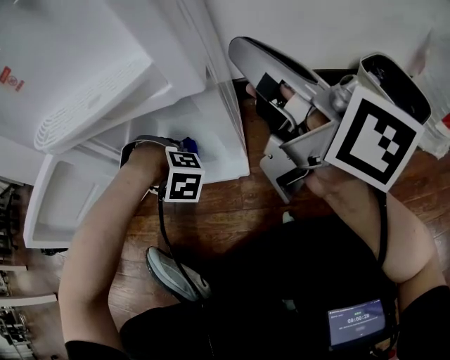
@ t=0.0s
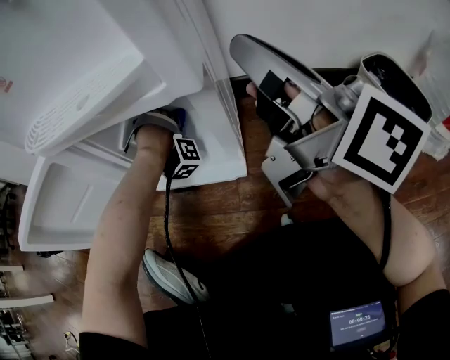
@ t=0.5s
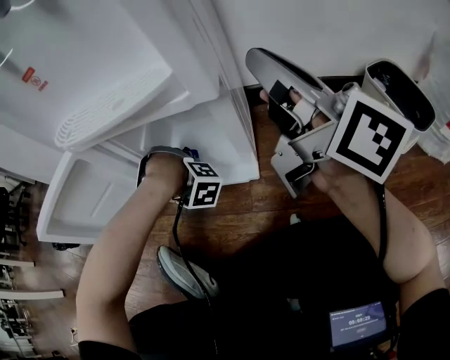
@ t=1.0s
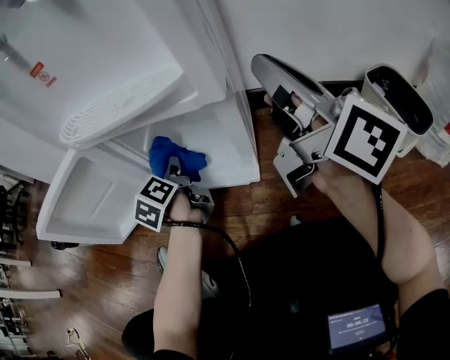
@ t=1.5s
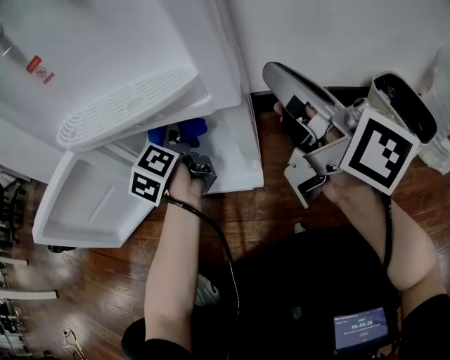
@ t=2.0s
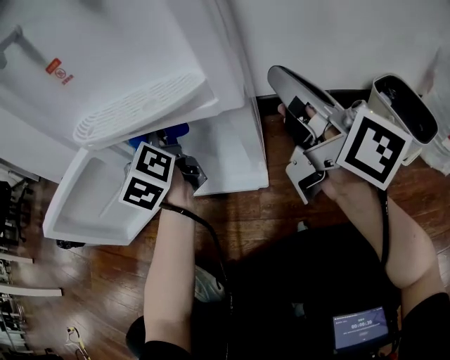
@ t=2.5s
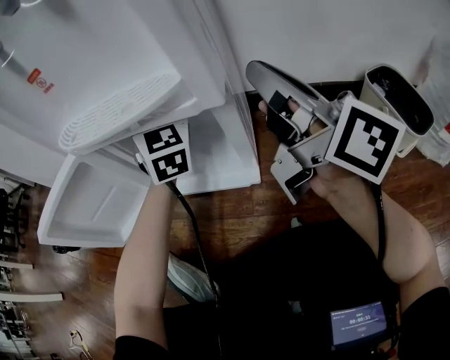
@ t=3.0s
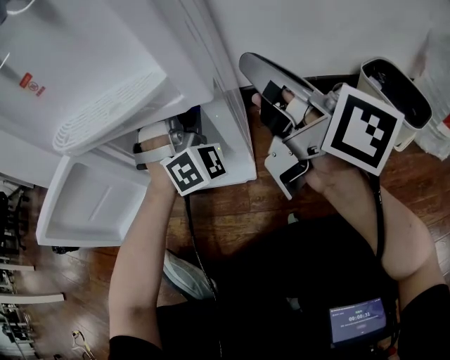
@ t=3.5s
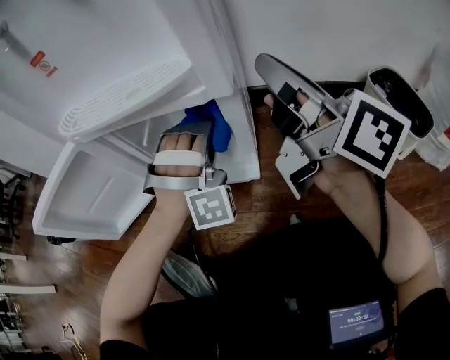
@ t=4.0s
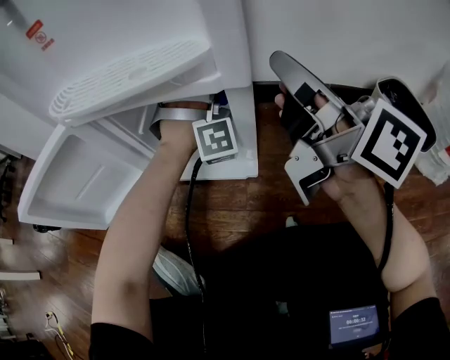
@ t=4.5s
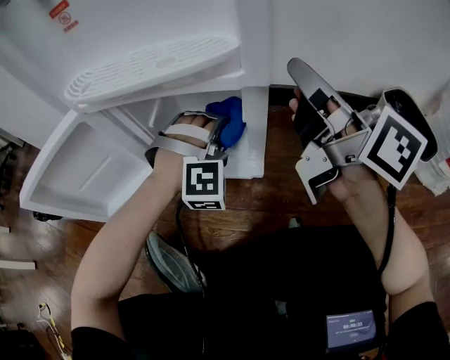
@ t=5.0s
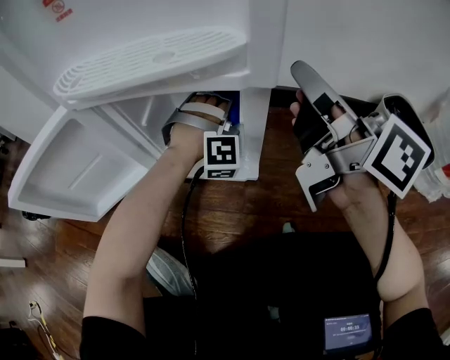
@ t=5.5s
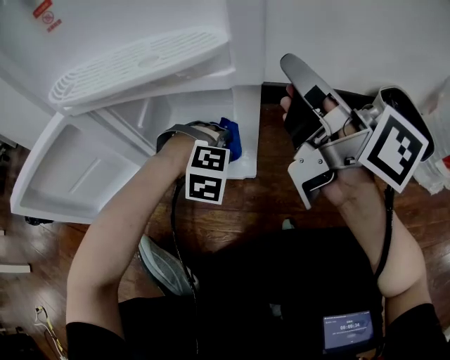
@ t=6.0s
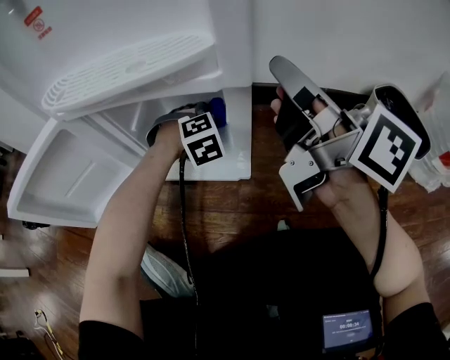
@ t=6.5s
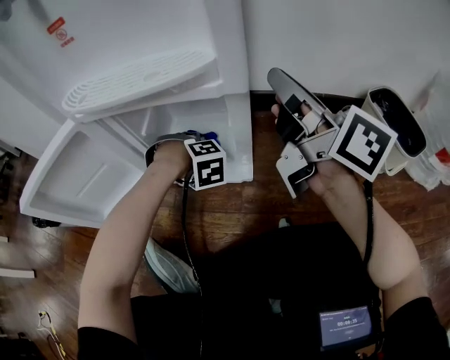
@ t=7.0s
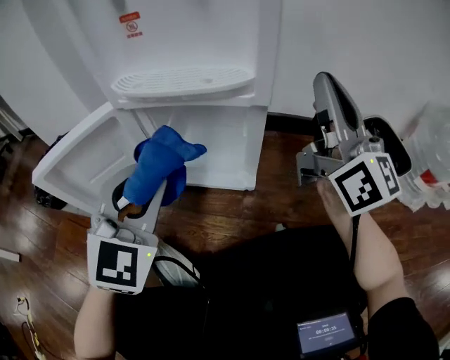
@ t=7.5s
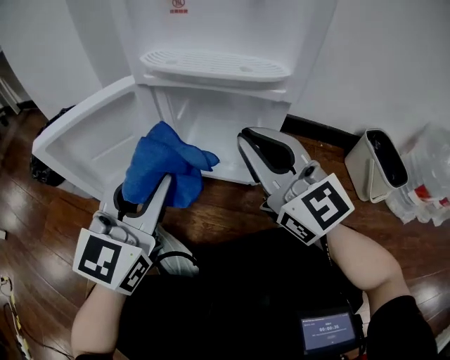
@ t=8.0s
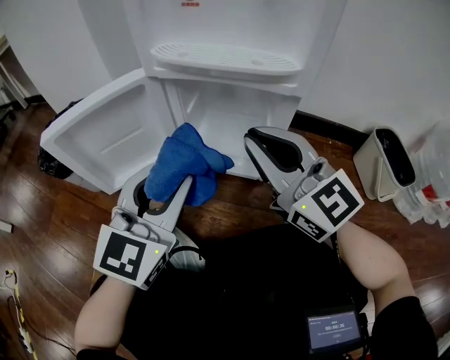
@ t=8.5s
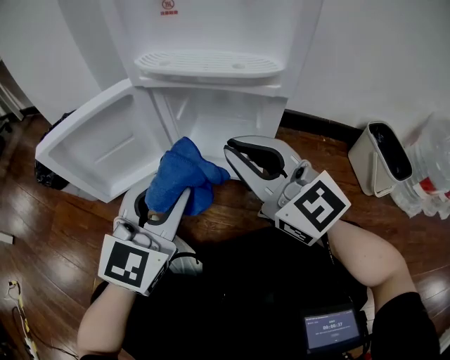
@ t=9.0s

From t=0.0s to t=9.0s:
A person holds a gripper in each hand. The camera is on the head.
From t=0.0s to t=2.0s: The left gripper shifts roughly 15 cm upward, and tips its fingers upward by some 50 degrees.
From t=2.0s to t=4.5s: The left gripper is displaced to the right by some 15 cm, and twists about 150 degrees clockwise, seen from behind.
From t=4.5s to t=7.0s: The left gripper heads downward, covering some 15 cm, and tilts its fingers roughly 50 degrees downward.
From t=7.0s to t=9.0s: The left gripper travels upward by some 25 cm, and tilts its fingers roughly 60 degrees upward; the right gripper reaches some 10 cm upward, then returns, and rolls counterclockwise, seen from behind, by about 50 degrees.

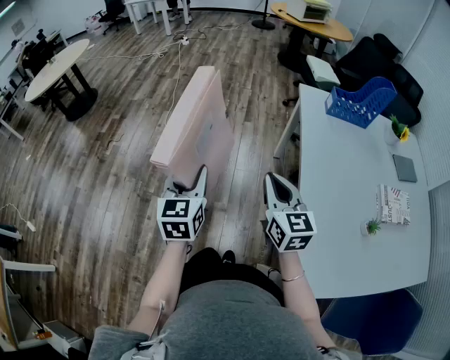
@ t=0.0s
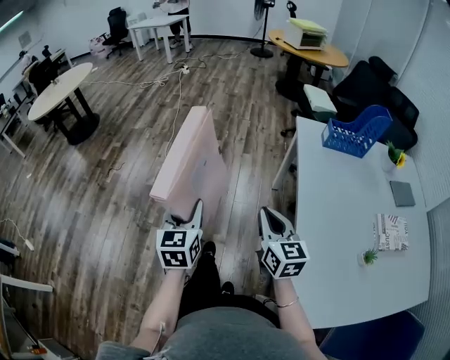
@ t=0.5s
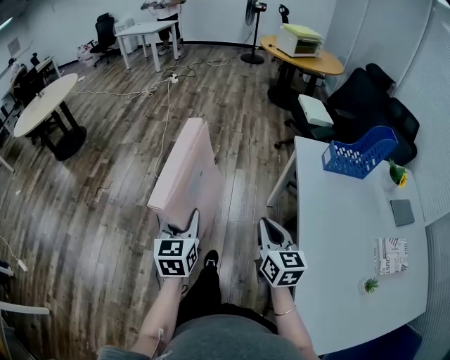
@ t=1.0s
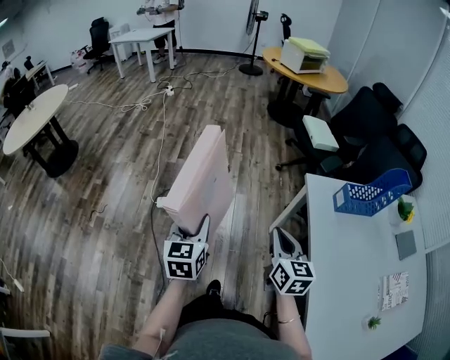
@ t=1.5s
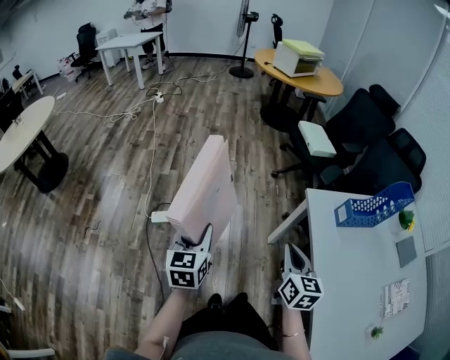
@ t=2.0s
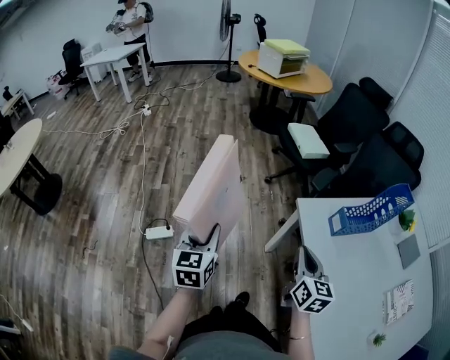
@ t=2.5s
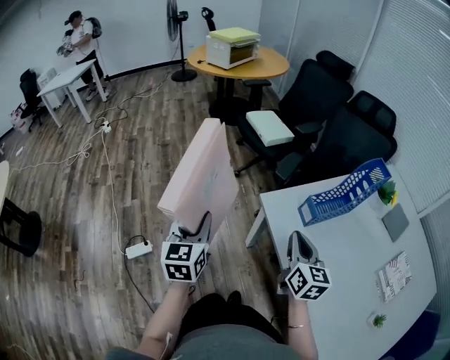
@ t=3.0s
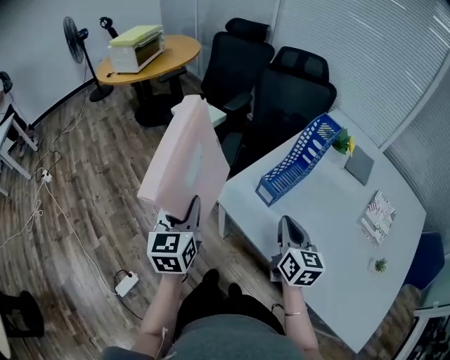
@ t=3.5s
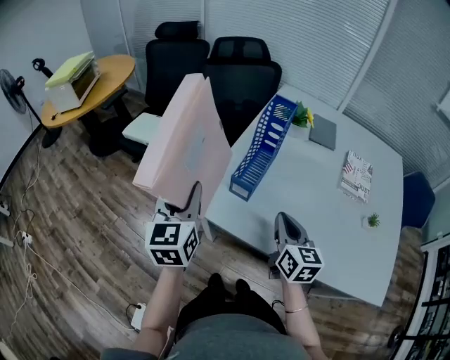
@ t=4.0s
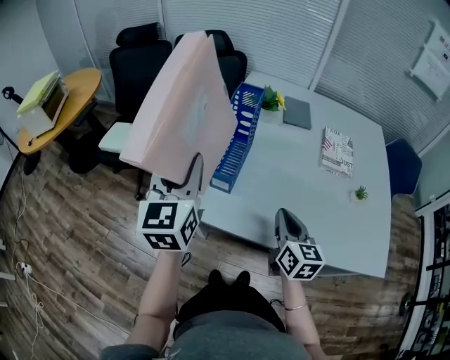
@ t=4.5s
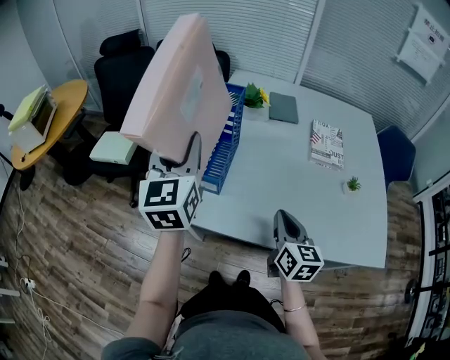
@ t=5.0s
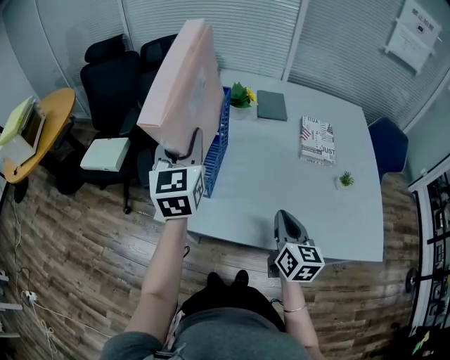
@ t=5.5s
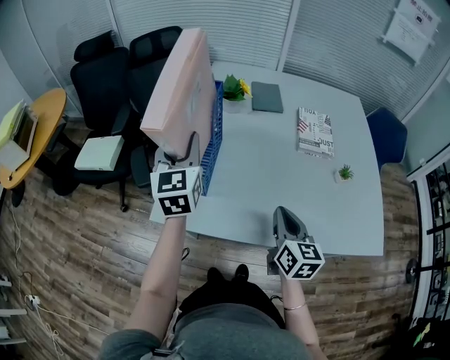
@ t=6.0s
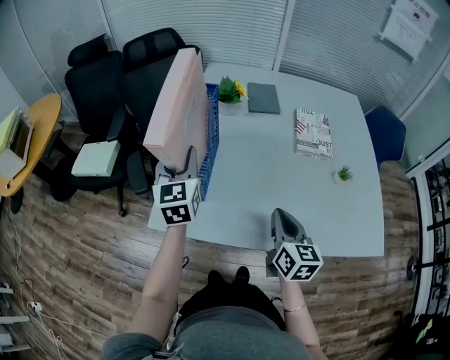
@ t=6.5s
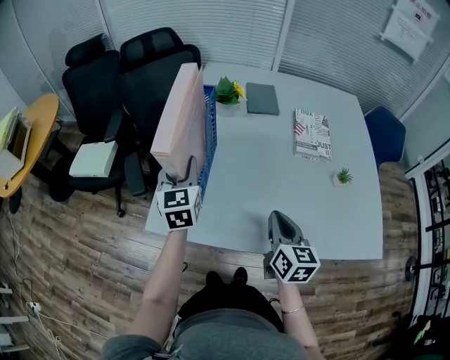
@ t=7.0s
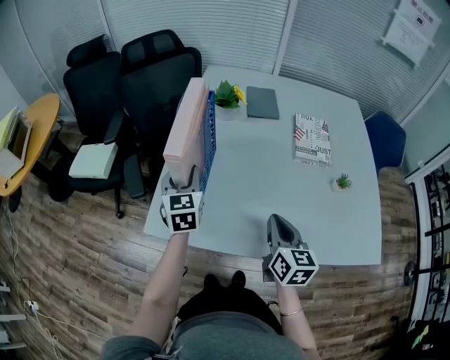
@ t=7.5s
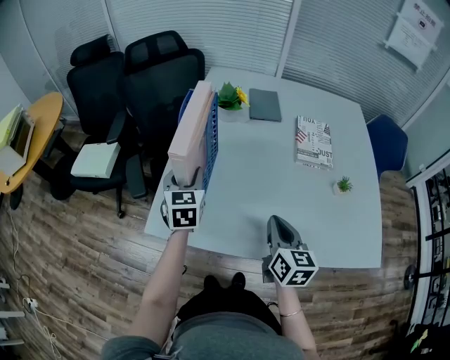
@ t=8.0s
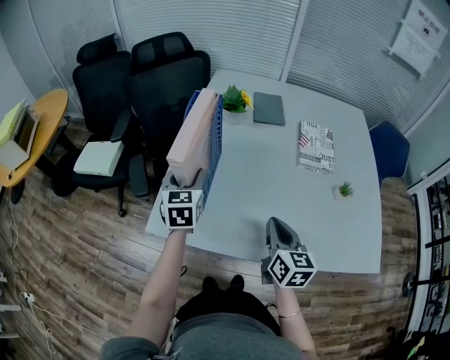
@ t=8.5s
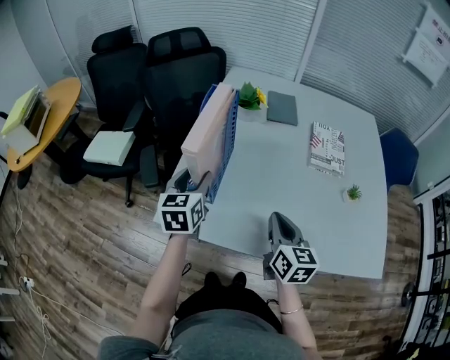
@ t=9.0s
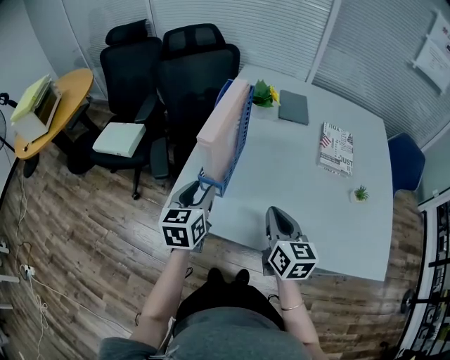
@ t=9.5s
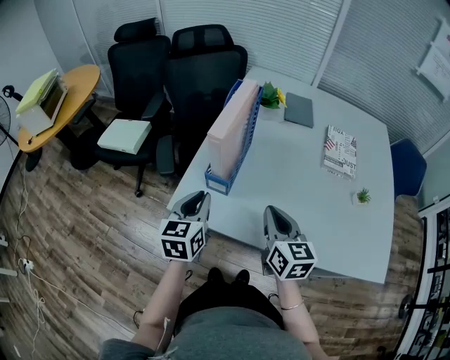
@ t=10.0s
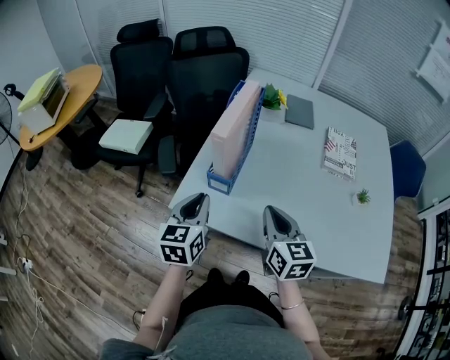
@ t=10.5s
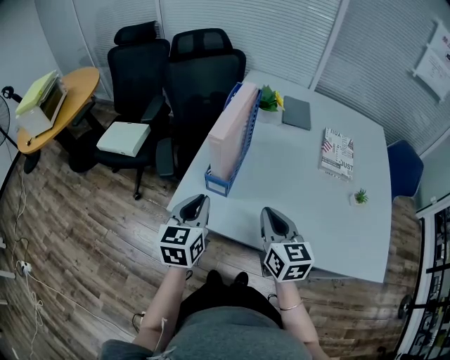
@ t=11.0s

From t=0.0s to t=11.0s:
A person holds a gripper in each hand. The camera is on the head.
From t=0.0s to t=2.0s: The two grippers go some 35 cm forward. The right gripper changes its angle by about 20 degrees.
From t=2.0s to t=3.5s: The right gripper shifts by some 25 cm, and swivels approximately 40 degrees. Meanwhile the left gripper shifts by about 40 cm, and swivels some 40 degrees.
From t=3.5s to t=5.5s: The left gripper moves about 30 cm, and turns by roughly 40 degrees. Meanwhile the right gripper changes place by roughly 15 cm, and swivels about 40 degrees.
From t=5.5s to t=7.5s: The left gripper shifts approximately 15 cm downward.
From t=7.5s to t=9.0s: There are only small adjustments of the grippers.
From t=9.0s to t=11.0s: The right gripper travels to the left by roughly 10 cm. Meanwhile the left gripper is displaced backward by approximately 10 cm, and closes its fingers.

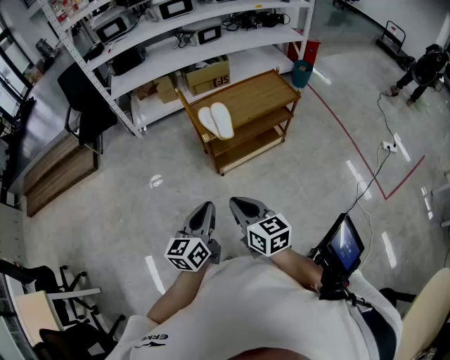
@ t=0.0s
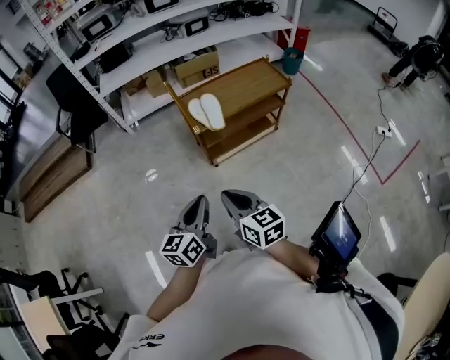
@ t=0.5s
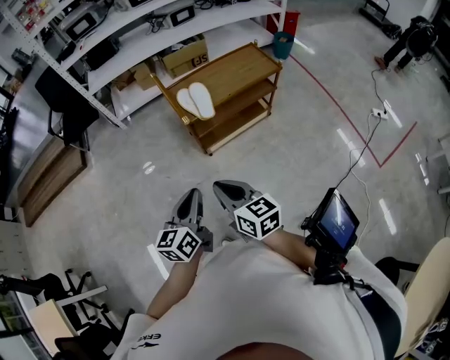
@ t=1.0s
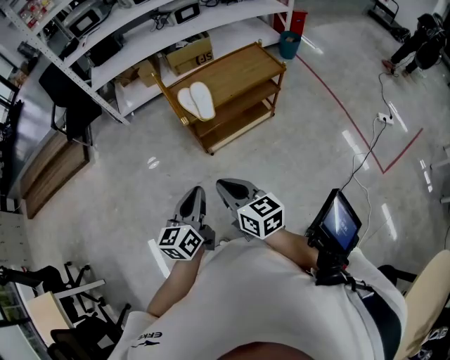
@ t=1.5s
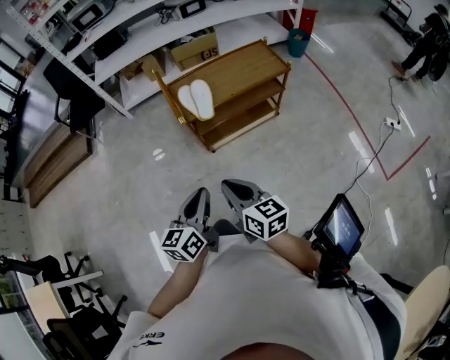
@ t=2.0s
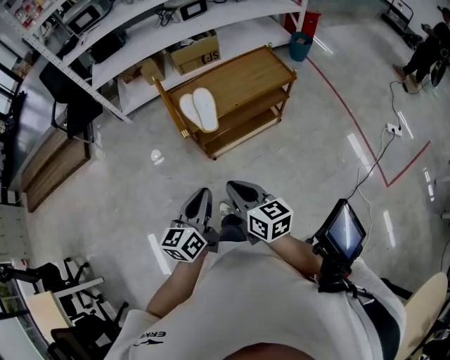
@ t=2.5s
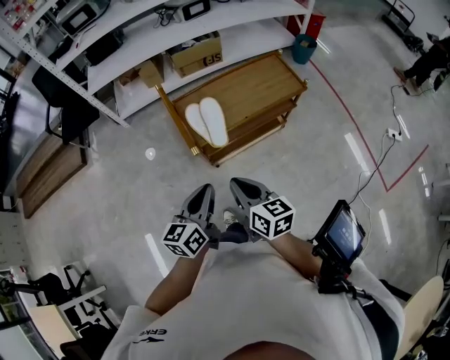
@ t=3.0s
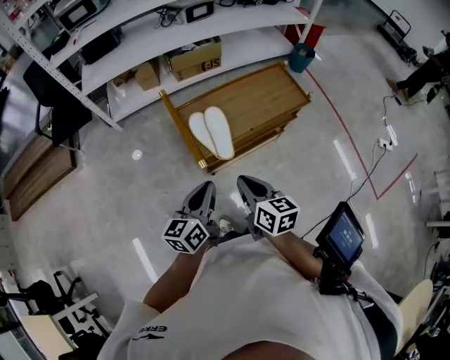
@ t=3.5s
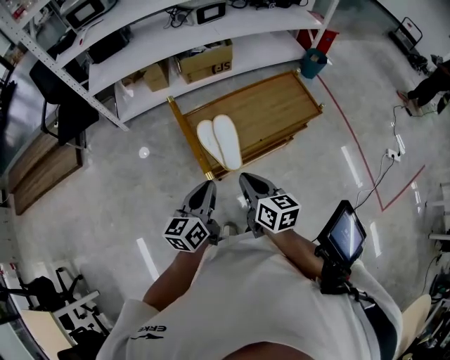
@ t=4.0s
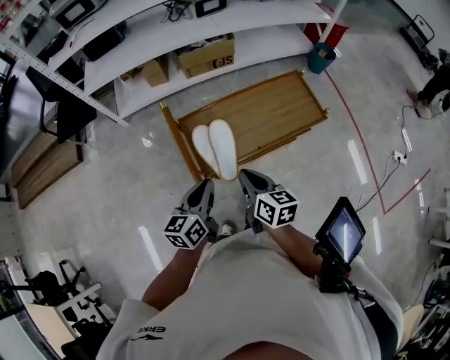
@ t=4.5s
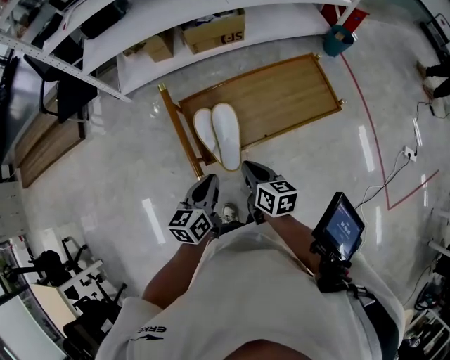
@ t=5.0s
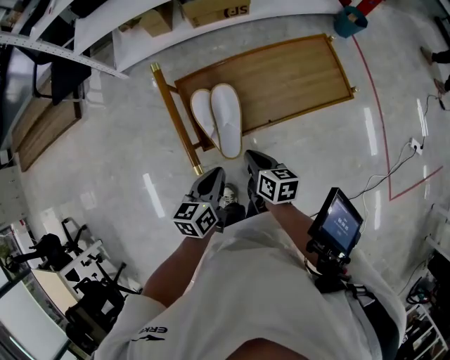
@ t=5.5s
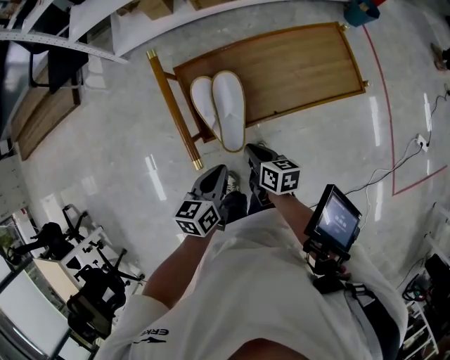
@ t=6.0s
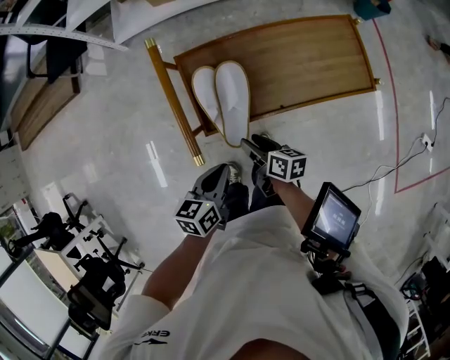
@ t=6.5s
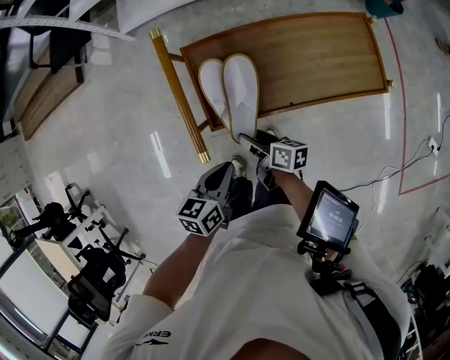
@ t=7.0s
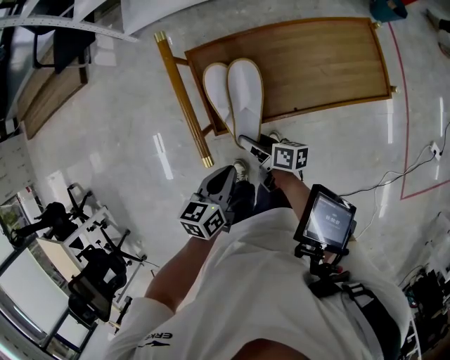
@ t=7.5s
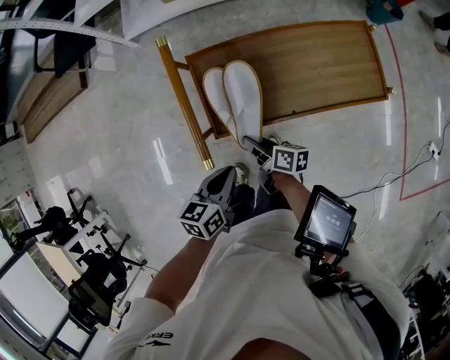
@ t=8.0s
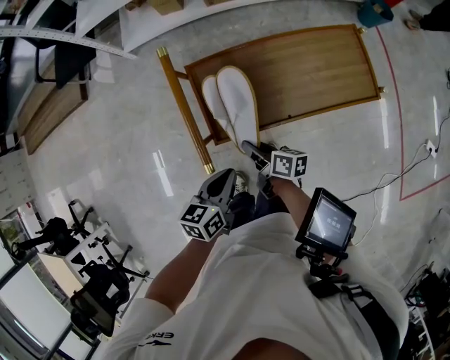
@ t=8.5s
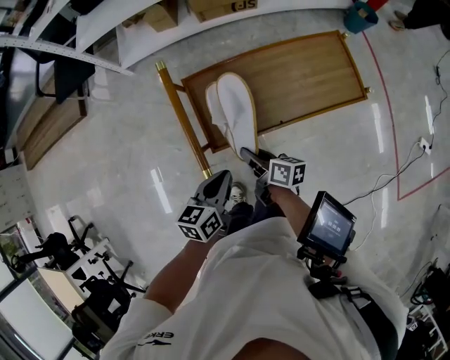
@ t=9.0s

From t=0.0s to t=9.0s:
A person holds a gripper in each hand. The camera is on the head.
From t=0.0s to t=2.0s: Both grippers move to the right, roughly 10 cm.
From t=2.0s to t=4.5s: The two grippers go some 35 cm forward.
From t=4.5s to t=7.0s: The left gripper goes about 15 cm downward, and rotates approximately 20 degrees, while the right gripper travels downward by about 25 cm, changes its angle by roughly 40 degrees, and opens its fingers.
From t=7.0s to t=9.0s: The right gripper heads upward, covering approximately 5 cm, and closes up.
